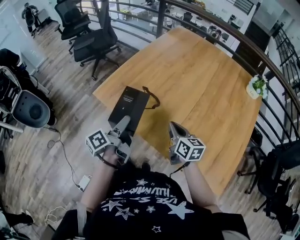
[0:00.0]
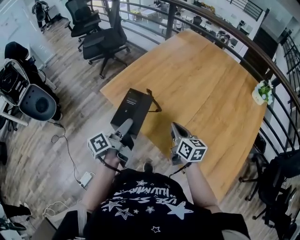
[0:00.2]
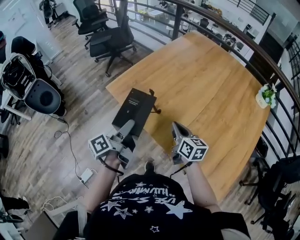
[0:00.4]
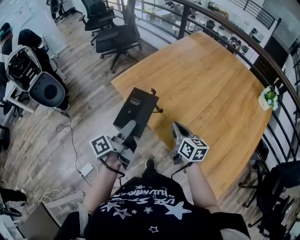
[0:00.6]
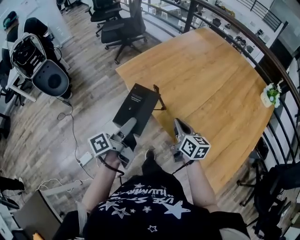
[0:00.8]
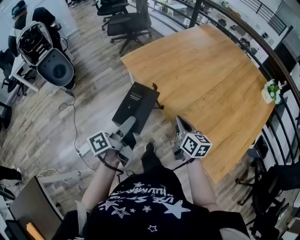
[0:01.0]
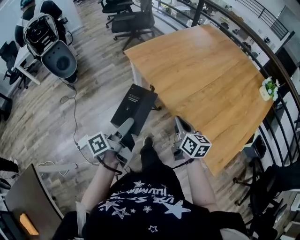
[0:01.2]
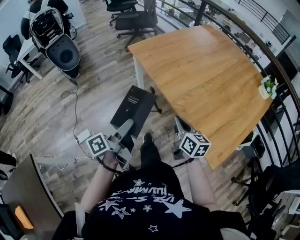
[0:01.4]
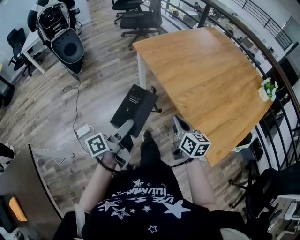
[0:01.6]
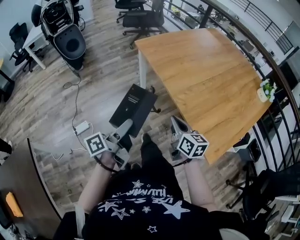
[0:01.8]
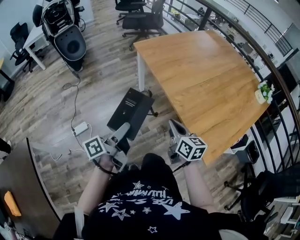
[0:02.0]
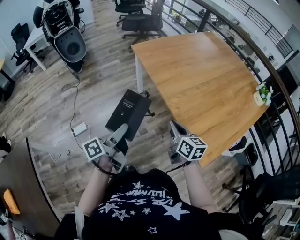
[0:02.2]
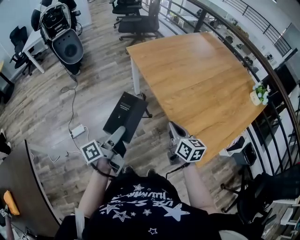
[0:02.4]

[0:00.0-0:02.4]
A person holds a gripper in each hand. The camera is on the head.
0:00.0 to 0:01.2: Both grippers move backward, about 25 cm.
0:01.2 to 0:02.4: Both grippers travel together backward, roughly 10 cm.

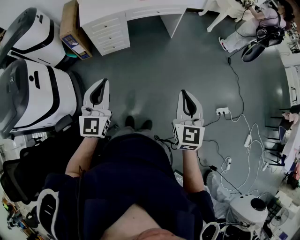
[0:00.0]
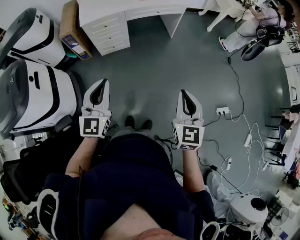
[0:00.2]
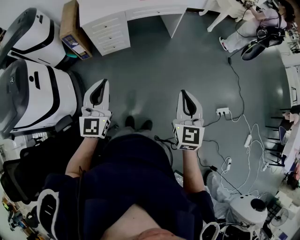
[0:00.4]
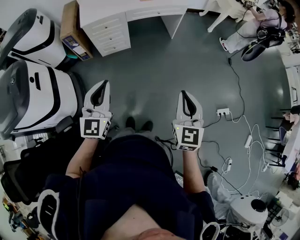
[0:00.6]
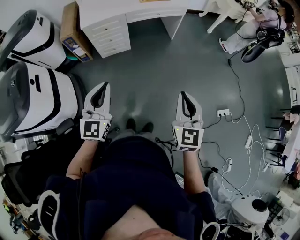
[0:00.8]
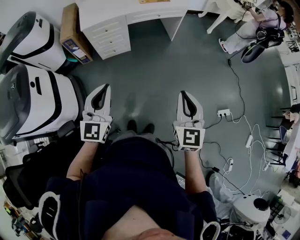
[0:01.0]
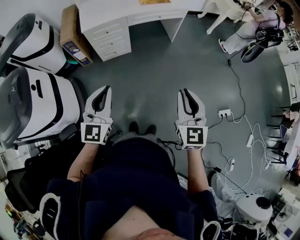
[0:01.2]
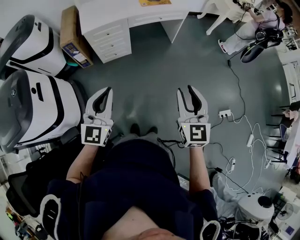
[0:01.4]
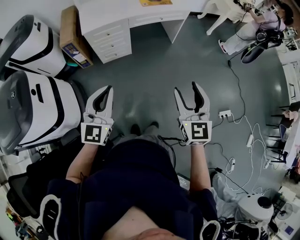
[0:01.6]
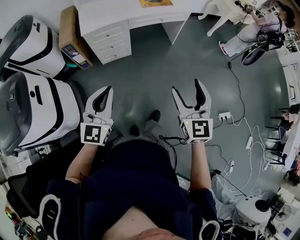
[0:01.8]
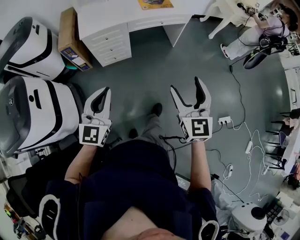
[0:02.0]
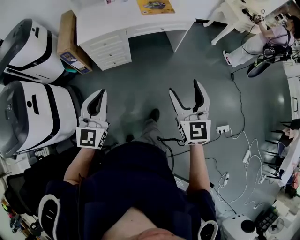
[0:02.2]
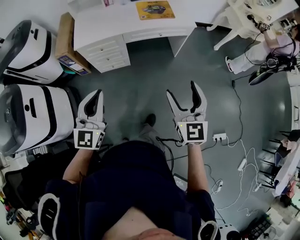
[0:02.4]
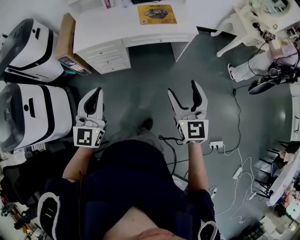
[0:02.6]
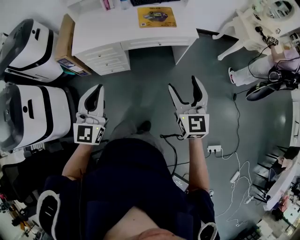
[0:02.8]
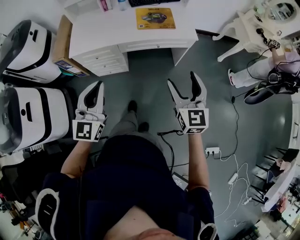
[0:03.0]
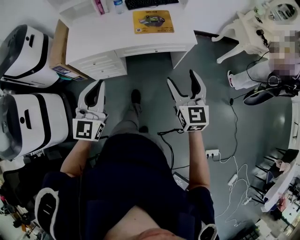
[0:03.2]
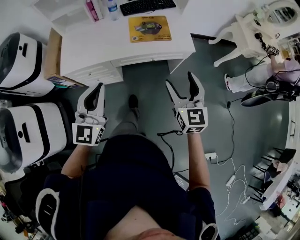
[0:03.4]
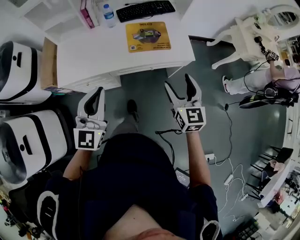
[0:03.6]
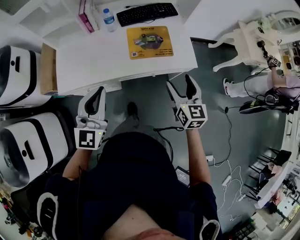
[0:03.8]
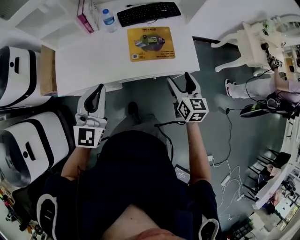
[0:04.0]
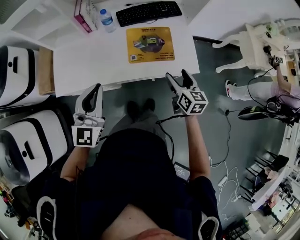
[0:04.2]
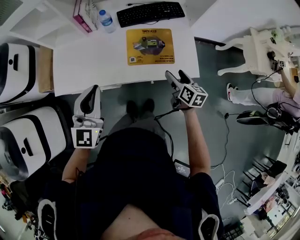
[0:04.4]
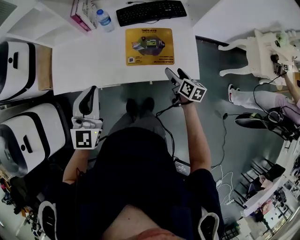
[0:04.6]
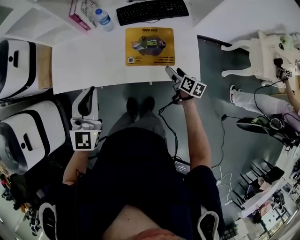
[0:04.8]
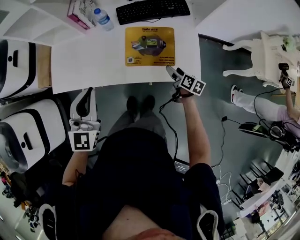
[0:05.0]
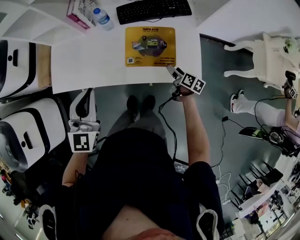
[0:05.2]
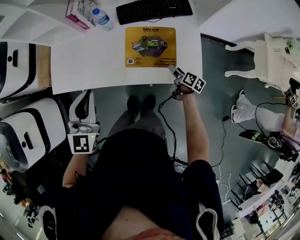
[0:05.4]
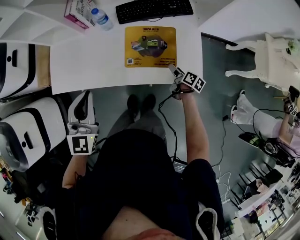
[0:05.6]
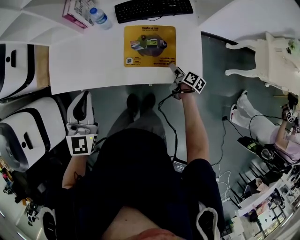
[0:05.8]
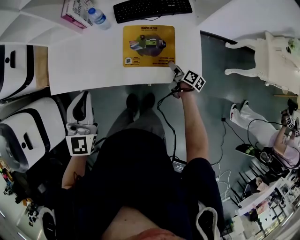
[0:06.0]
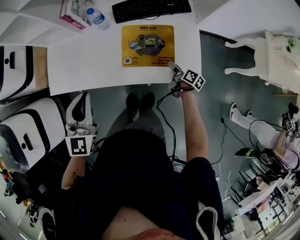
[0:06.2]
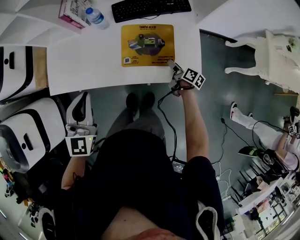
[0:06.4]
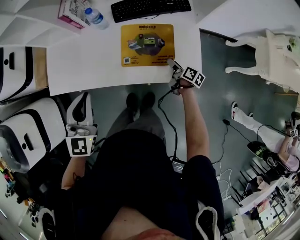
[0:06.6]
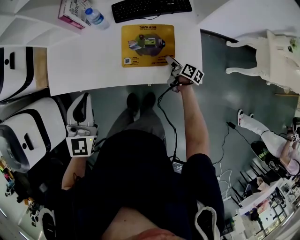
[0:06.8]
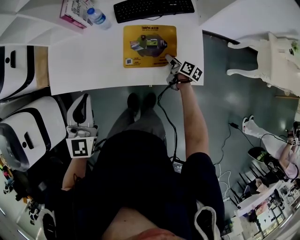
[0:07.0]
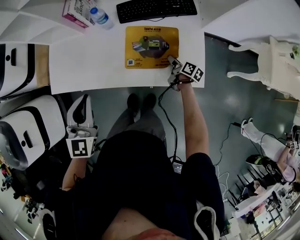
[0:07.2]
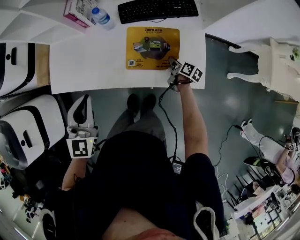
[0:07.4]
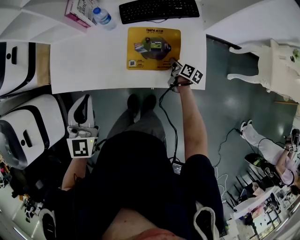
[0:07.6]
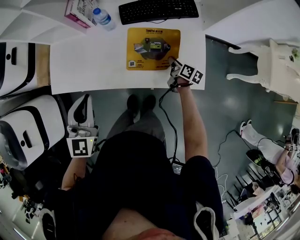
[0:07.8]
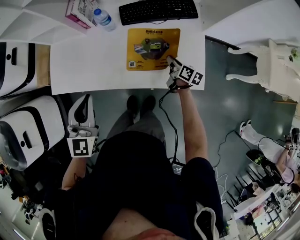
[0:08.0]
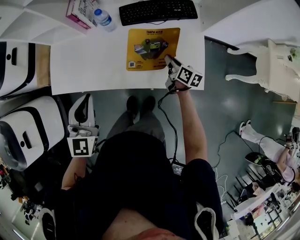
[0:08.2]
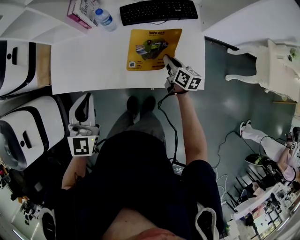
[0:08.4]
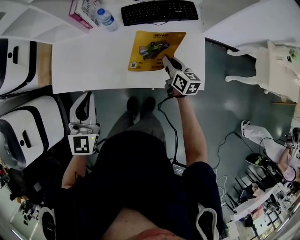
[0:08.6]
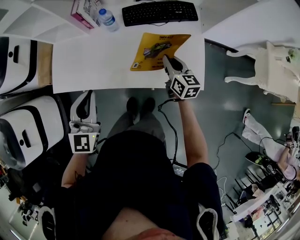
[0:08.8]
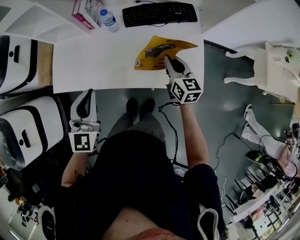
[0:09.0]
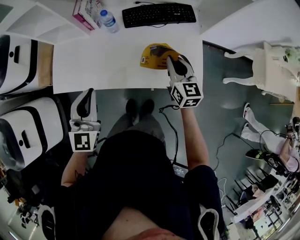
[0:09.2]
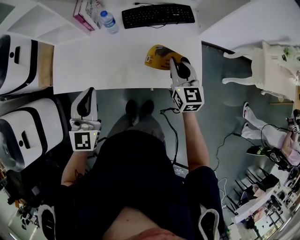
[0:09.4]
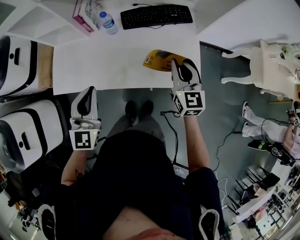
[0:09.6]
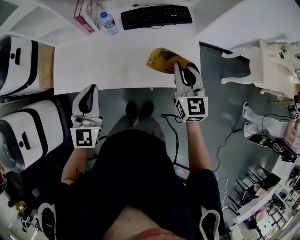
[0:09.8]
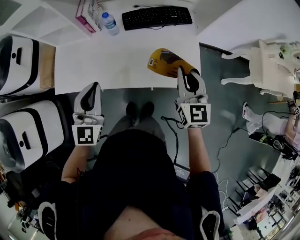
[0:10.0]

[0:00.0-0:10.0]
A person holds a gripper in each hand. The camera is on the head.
0:00.0 to 0:01.4: The right gripper shifts about 10 cm to the left and forward, and opens up. The left gripper shifts by some 5 cm.
0:01.4 to 0:02.8: The right gripper moves forward, approximately 35 cm, and opens. Meanwhile the left gripper travels forward and to the right by some 30 cm.
0:02.8 to 0:04.2: Both grippers travel together forward, some 40 cm. The right gripper rotates approximately 30 degrees.
0:04.2 to 0:05.8: The left gripper is displaced forward by some 5 cm; the right gripper travels downward and forward by approximately 25 cm, and twists approximately 40 degrees clockwise, seen from behind.
0:05.8 to 0:07.2: The right gripper moves forward, roughly 5 cm, and closes.
0:07.2 to 0:08.6: The right gripper travels upward and to the left by about 15 cm, rotates some 40 degrees, and closes up.
0:08.6 to 0:10.0: The right gripper goes about 20 cm upward and backward, and swivels some 40 degrees.

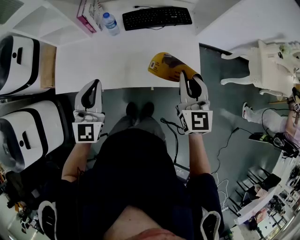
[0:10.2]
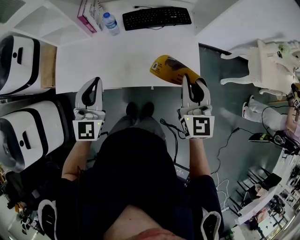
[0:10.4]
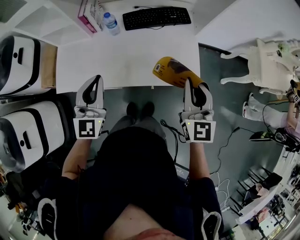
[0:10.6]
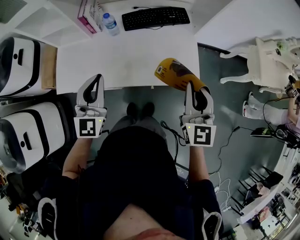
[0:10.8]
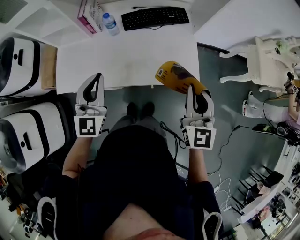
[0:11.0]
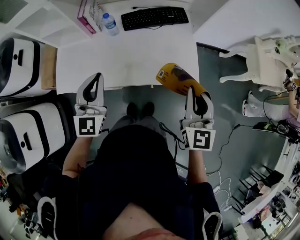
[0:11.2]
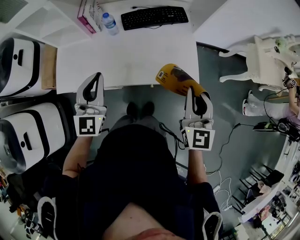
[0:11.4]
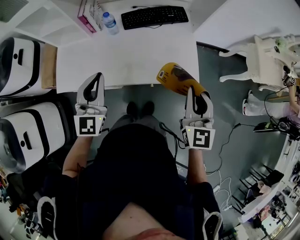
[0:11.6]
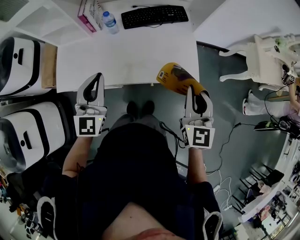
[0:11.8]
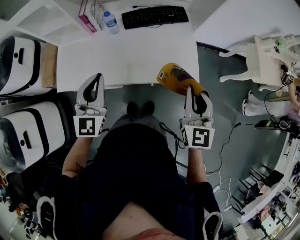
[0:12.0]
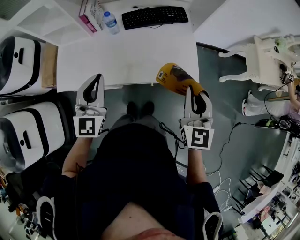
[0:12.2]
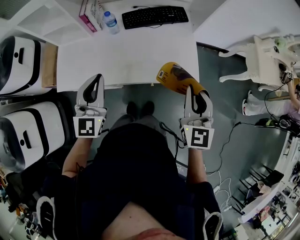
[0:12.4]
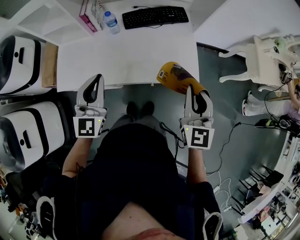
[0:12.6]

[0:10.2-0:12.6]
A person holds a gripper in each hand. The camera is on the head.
0:10.2 to 0:11.4: The right gripper goes approximately 10 cm backward.
0:11.4 to 0:12.6: The grippers make only small movements.

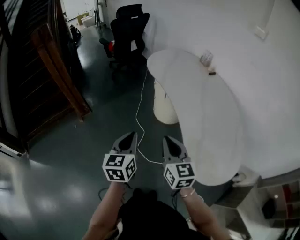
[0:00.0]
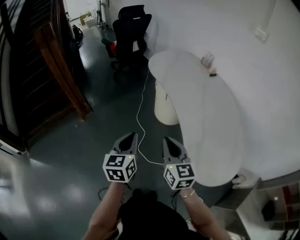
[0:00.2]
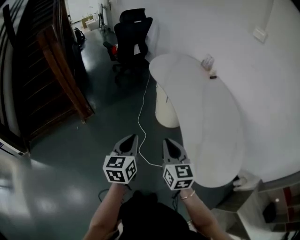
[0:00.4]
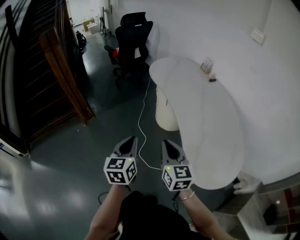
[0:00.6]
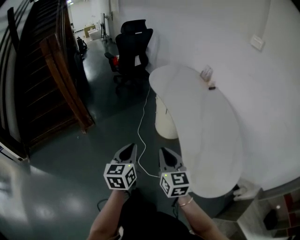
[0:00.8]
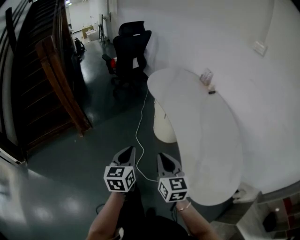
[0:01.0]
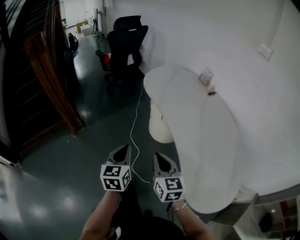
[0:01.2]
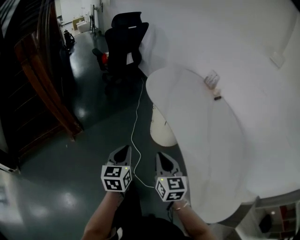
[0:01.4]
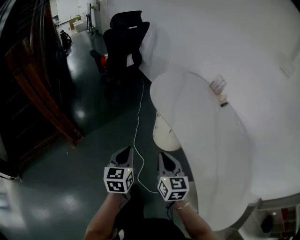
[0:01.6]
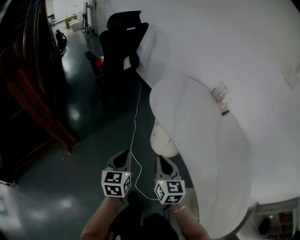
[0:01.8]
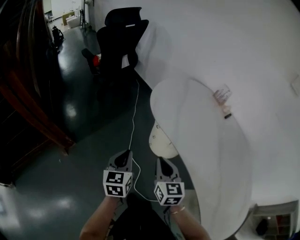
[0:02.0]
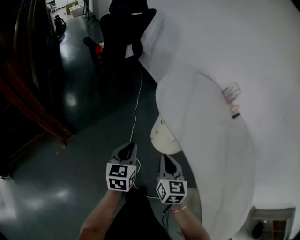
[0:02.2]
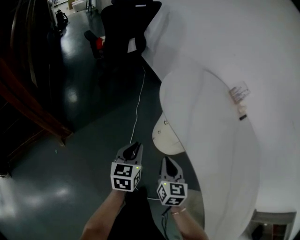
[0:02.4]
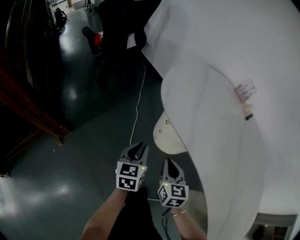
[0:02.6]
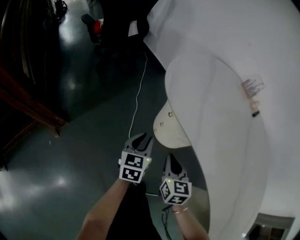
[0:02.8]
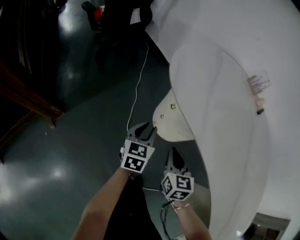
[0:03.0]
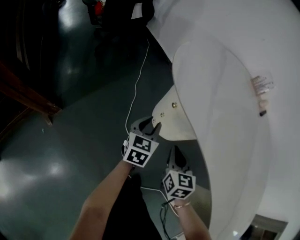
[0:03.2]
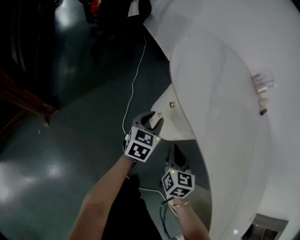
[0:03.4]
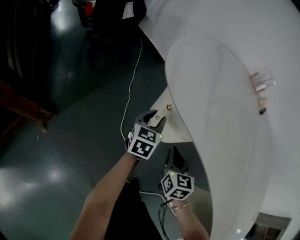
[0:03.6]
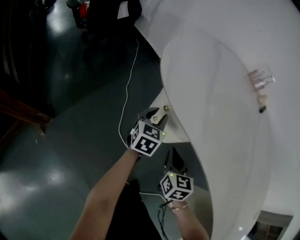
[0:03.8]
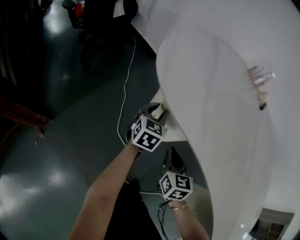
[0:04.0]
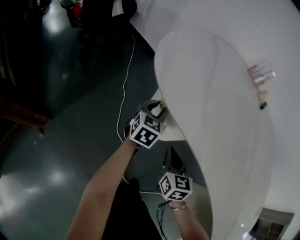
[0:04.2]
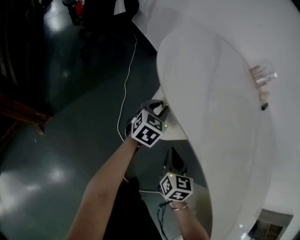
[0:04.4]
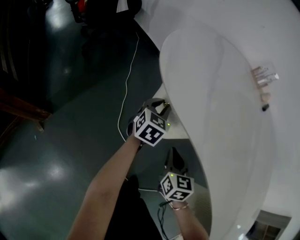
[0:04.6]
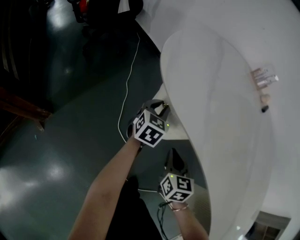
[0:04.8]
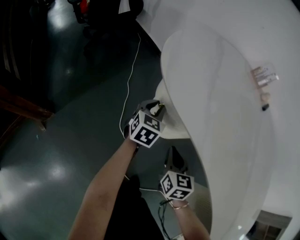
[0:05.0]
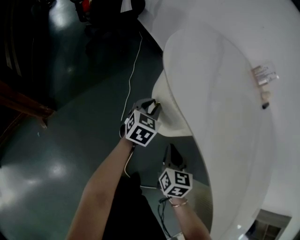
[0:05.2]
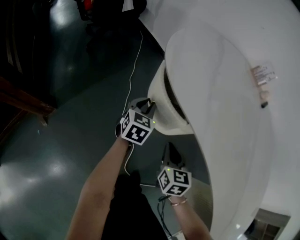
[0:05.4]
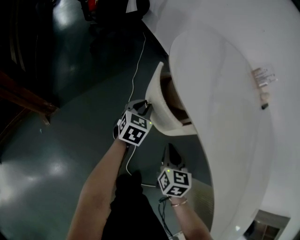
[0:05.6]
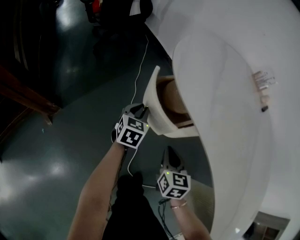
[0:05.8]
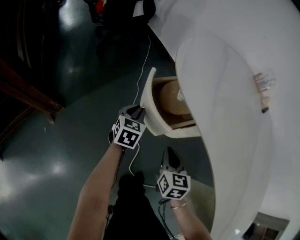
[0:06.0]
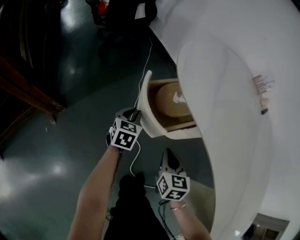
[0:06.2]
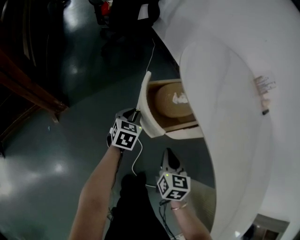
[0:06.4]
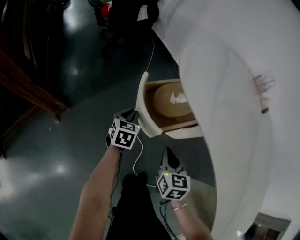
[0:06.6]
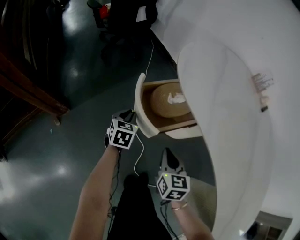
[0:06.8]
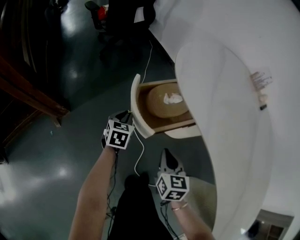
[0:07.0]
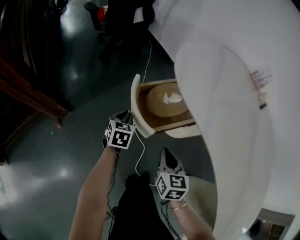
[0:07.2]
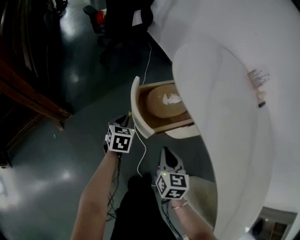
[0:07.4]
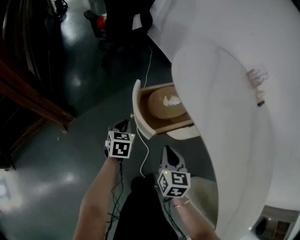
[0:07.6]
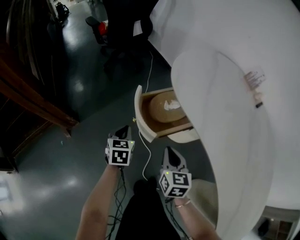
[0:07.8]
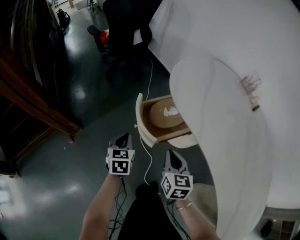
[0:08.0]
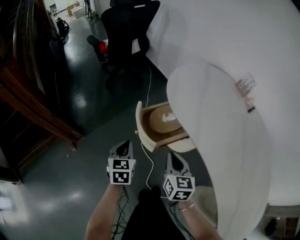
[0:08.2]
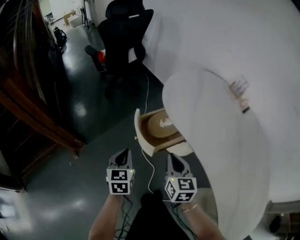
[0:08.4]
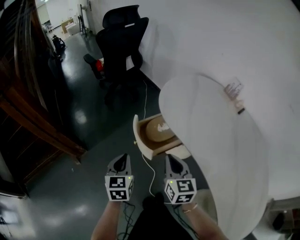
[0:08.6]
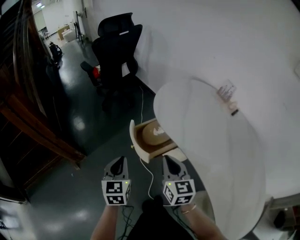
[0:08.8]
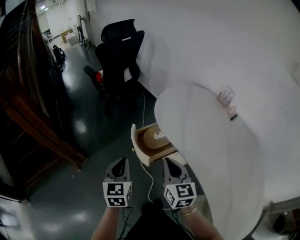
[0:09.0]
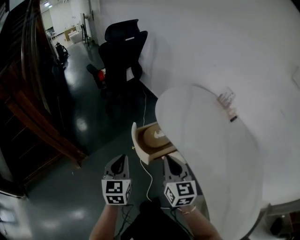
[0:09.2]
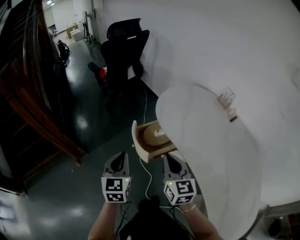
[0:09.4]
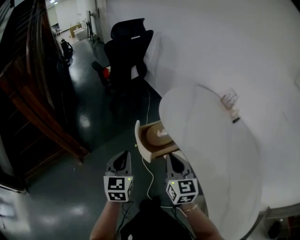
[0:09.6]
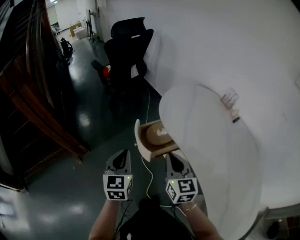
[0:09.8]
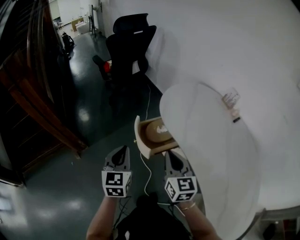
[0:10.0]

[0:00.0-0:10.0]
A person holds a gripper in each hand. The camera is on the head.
0:00.0 to 0:01.4: Both grippers move forward, some 20 cm.
0:01.4 to 0:02.8: Both grippers travel together forward and downward, approximately 35 cm. The left gripper opens its fingers.
0:02.8 to 0:04.2: The right gripper travels downward and forward by roughly 10 cm; the left gripper shifts some 20 cm forward, downward and to the right.
0:04.2 to 0:05.8: The left gripper moves to the left and backward, about 15 cm, while the right gripper travels backward by roughly 5 cm.
0:05.8 to 0:07.2: The right gripper ends up some 5 cm from where it was. The left gripper shifts roughly 10 cm to the left and backward.
0:07.2 to 0:08.6: The left gripper shifts some 25 cm upward and backward. The right gripper shifts some 20 cm upward.
0:08.6 to 0:10.0: Both grippers travel together upward, approximately 10 cm.
